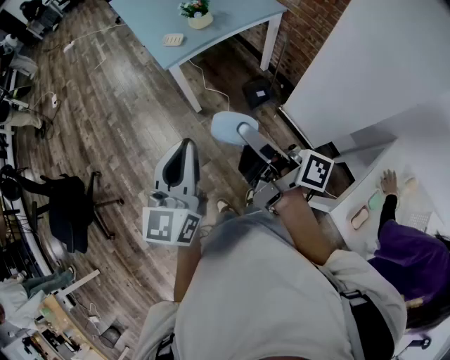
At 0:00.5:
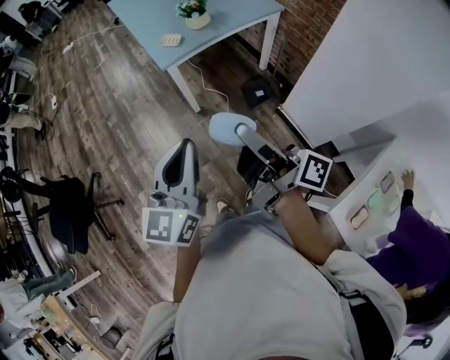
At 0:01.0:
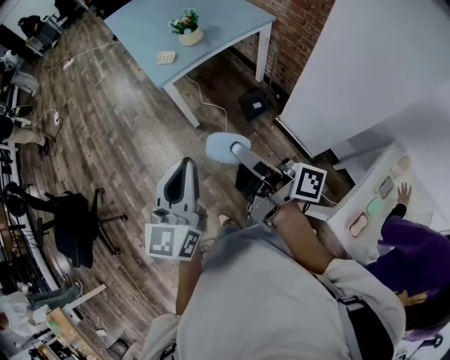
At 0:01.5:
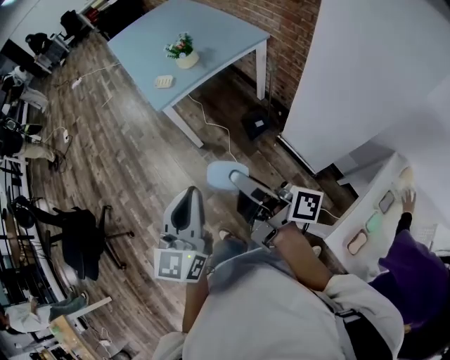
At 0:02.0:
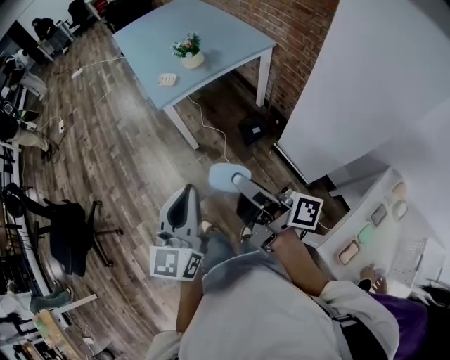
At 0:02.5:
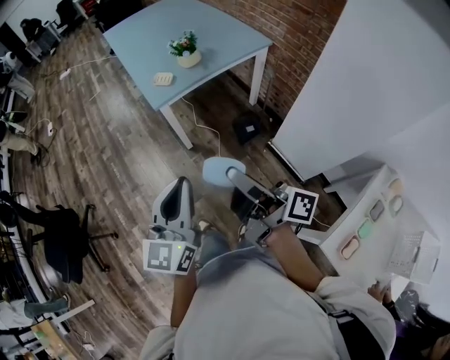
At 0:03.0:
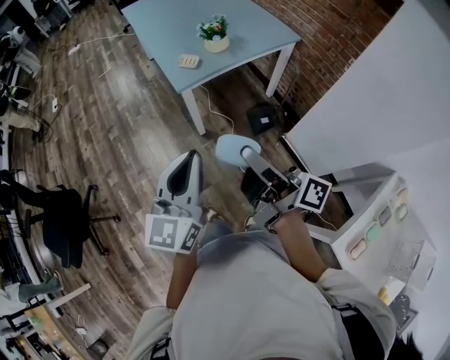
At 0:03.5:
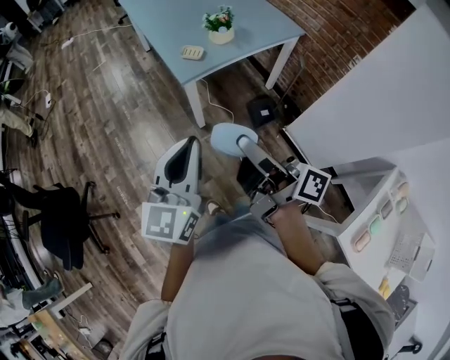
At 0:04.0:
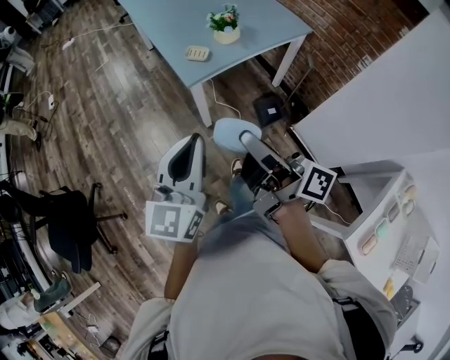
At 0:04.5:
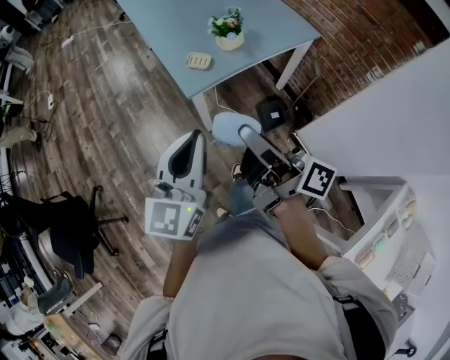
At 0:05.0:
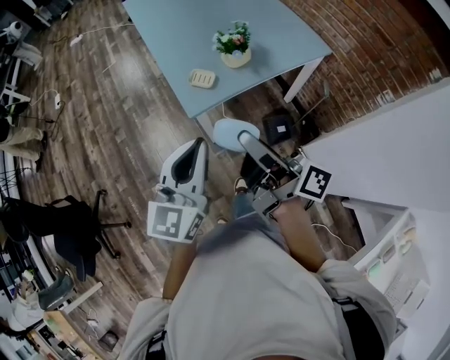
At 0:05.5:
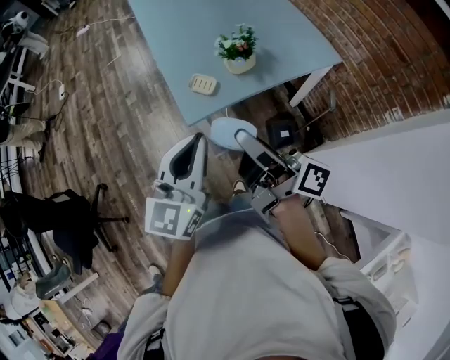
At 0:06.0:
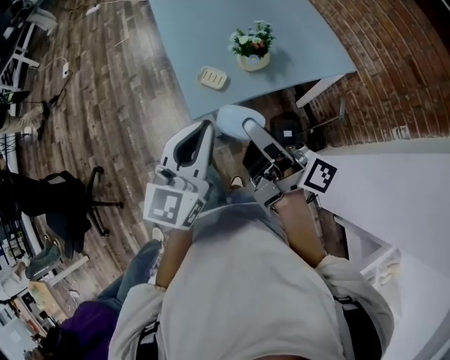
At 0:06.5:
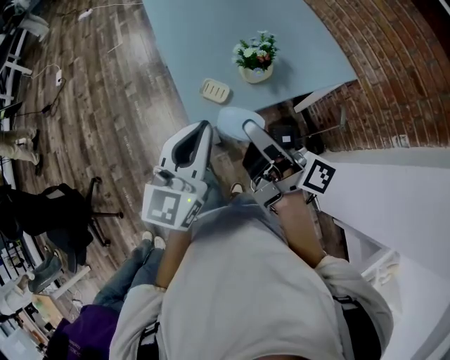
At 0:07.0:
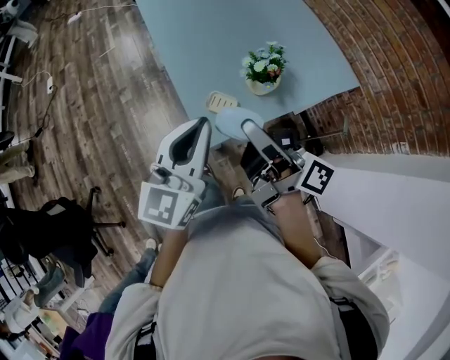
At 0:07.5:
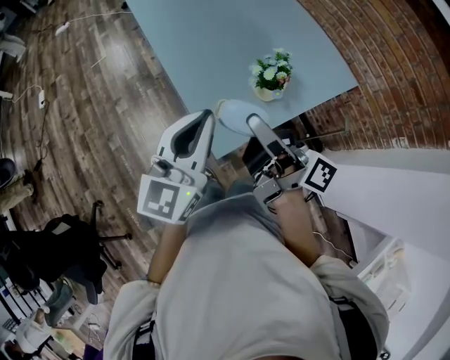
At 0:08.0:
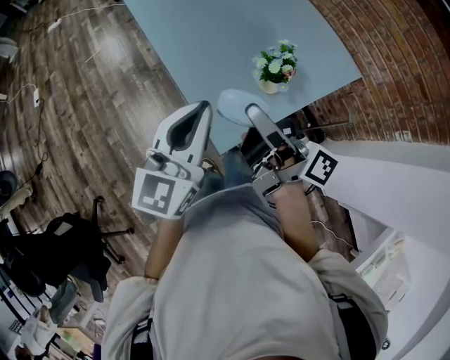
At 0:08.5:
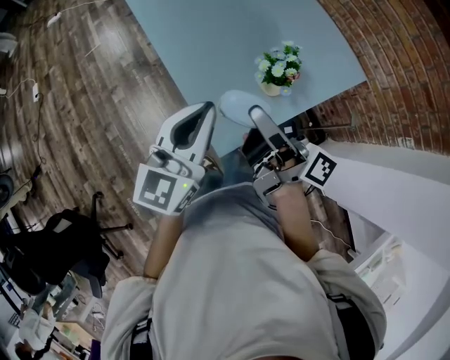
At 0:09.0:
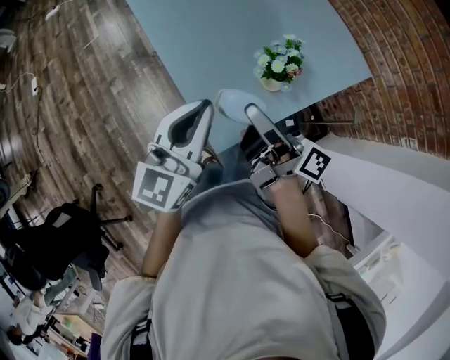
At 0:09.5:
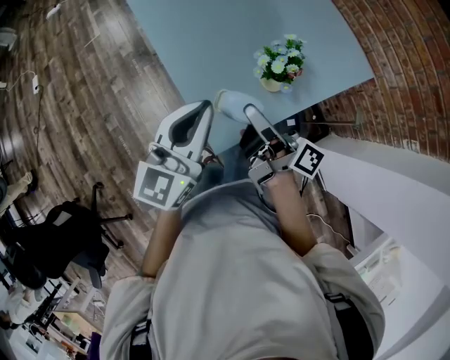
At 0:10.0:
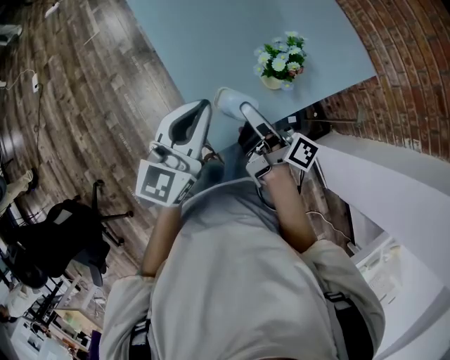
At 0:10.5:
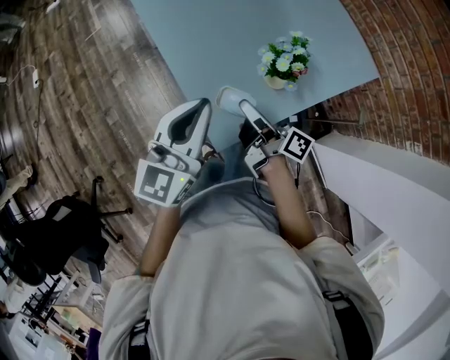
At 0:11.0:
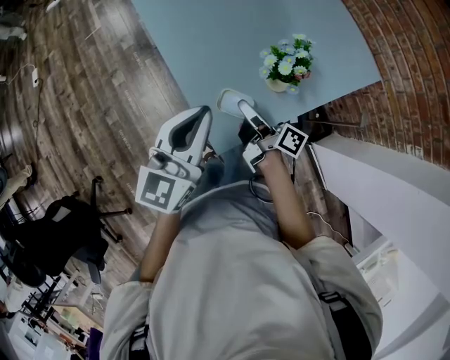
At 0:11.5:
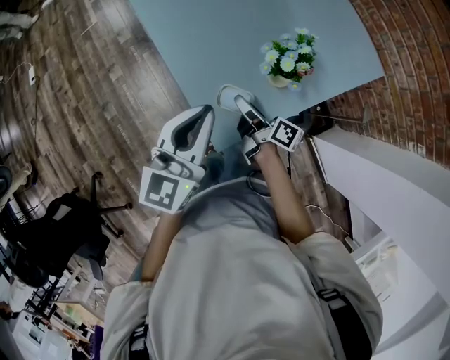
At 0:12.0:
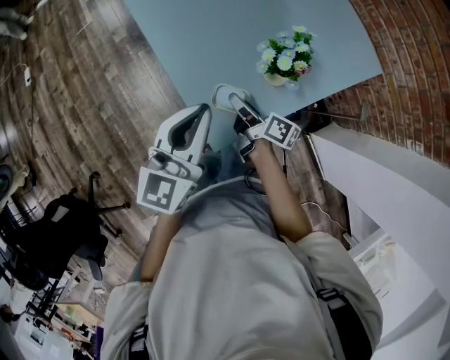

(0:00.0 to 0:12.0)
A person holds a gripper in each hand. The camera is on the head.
0:00.0 - 0:02.0: The two grippers go about 5 cm to the right.
0:02.0 - 0:04.0: The grippers both shift forward and to the left by about 20 cm.
0:04.0 - 0:06.0: Both grippers travel together forward, about 25 cm.
0:06.0 - 0:08.0: The grippers both shift forward and to the left by approximately 20 cm.
0:08.0 - 0:10.0: The left gripper travels downward by about 5 cm. Meanwhile the right gripper heads downward, covering roughly 15 cm.
0:10.0 - 0:12.0: The right gripper travels downward by some 15 cm, and changes its angle by some 20 degrees.

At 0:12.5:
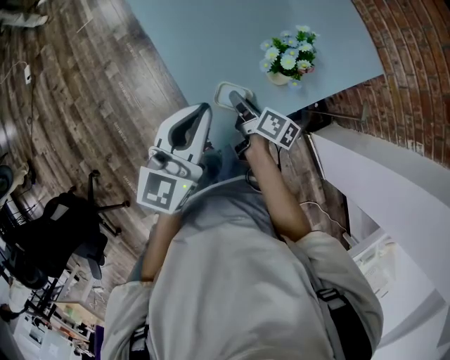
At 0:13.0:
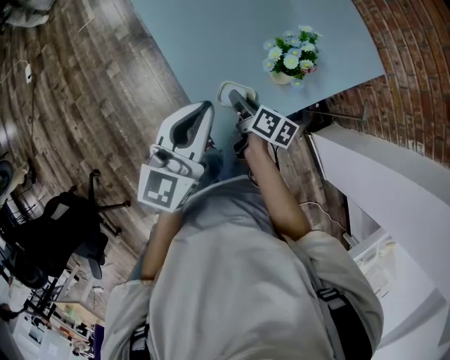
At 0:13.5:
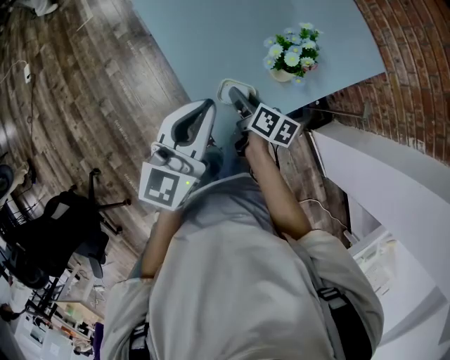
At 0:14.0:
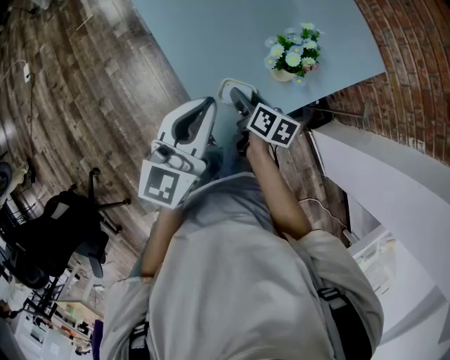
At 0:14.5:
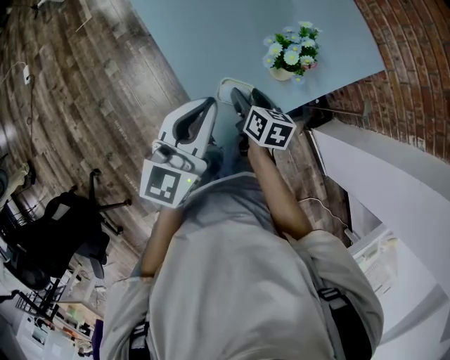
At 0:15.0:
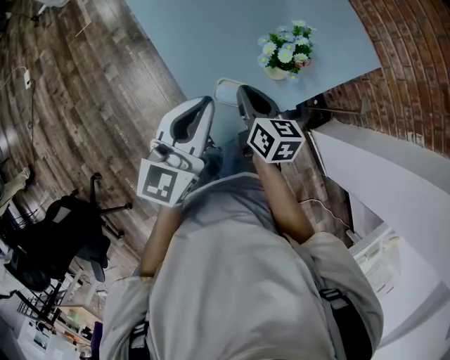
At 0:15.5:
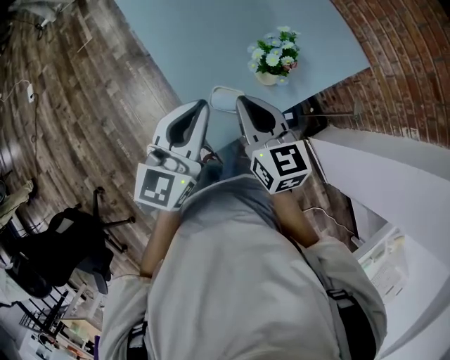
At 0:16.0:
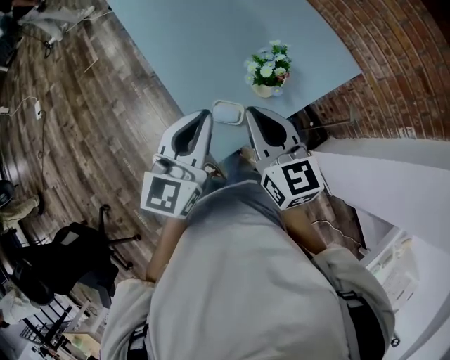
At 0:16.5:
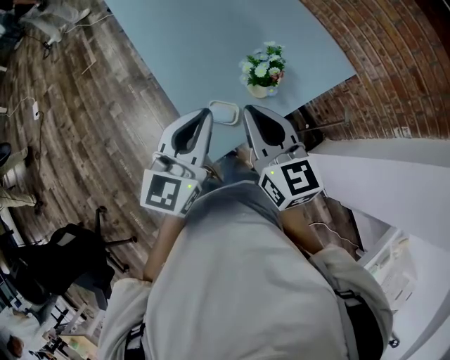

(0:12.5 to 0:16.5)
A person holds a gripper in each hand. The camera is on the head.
0:12.5 - 0:14.5: The right gripper changes its angle by about 30 degrees, and opens up.
0:14.5 - 0:16.5: The left gripper shifts roughly 5 cm upward, while the right gripper travels upward by some 25 cm, rotates roughly 40 degrees, and closes up.

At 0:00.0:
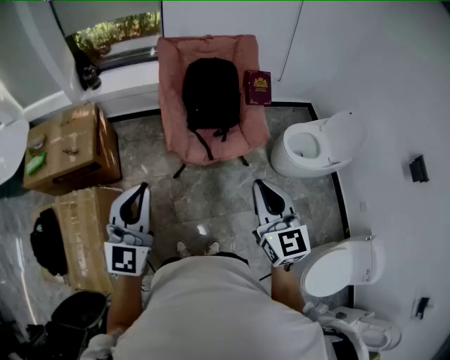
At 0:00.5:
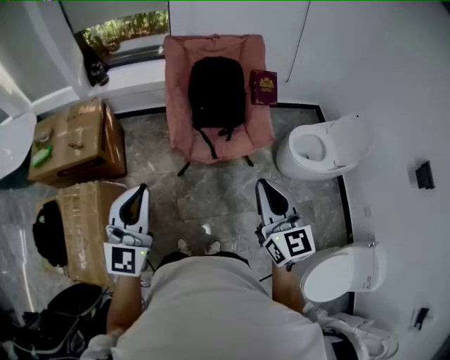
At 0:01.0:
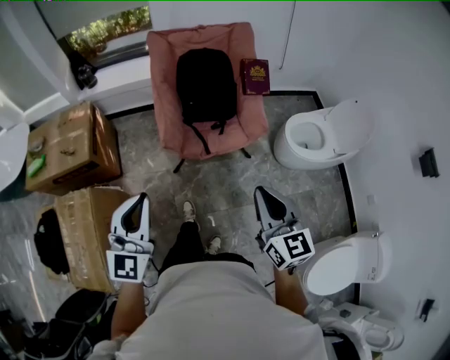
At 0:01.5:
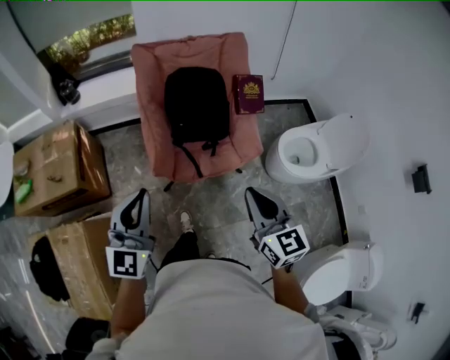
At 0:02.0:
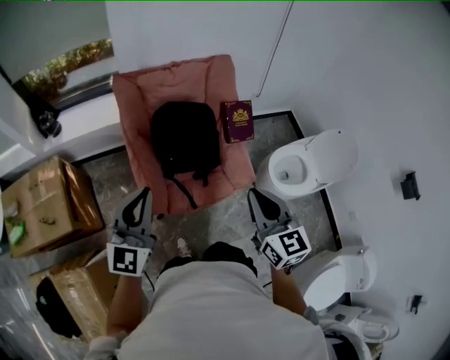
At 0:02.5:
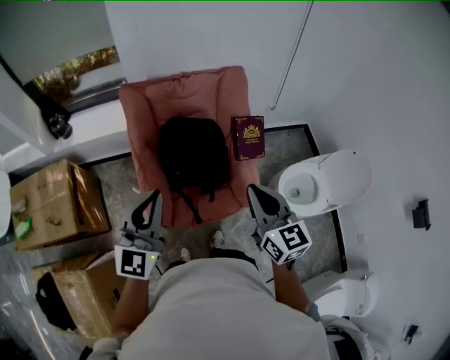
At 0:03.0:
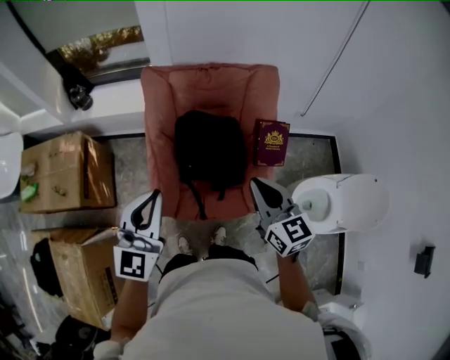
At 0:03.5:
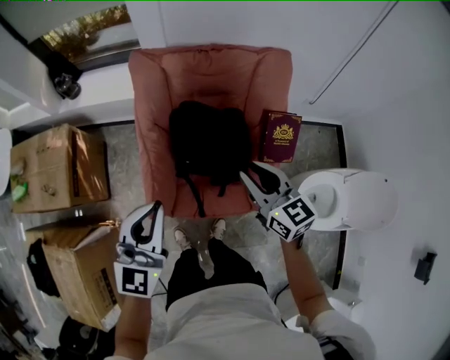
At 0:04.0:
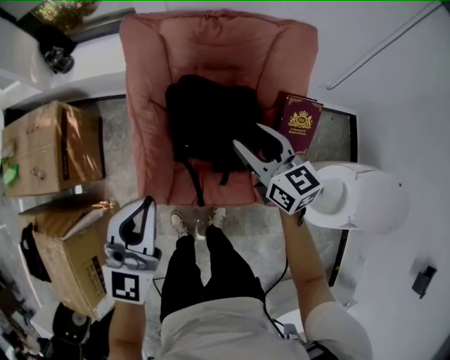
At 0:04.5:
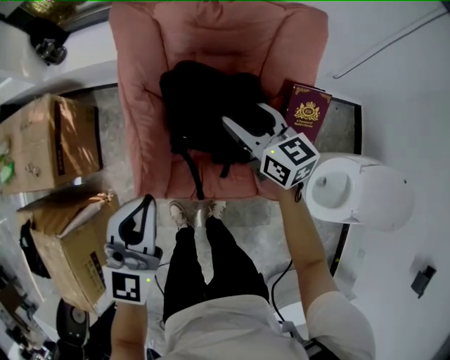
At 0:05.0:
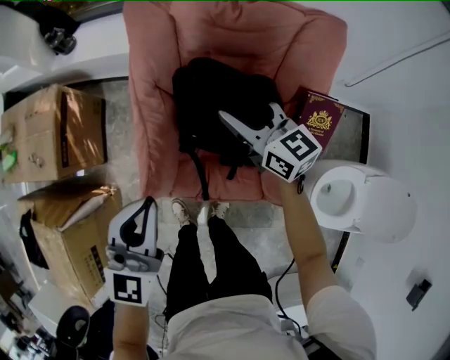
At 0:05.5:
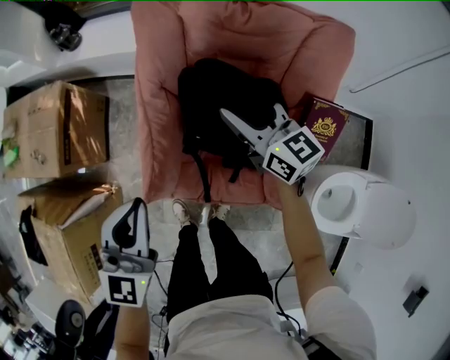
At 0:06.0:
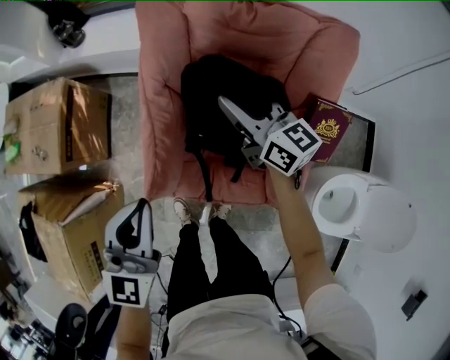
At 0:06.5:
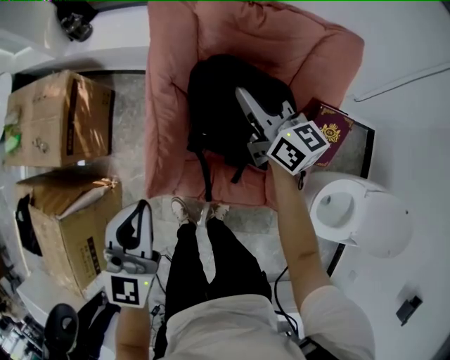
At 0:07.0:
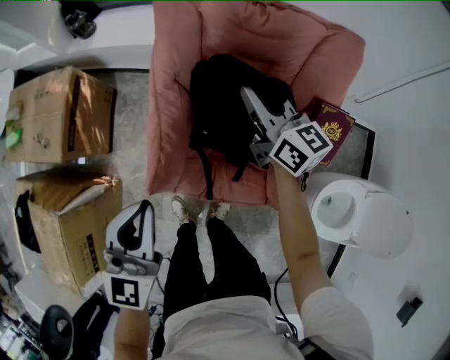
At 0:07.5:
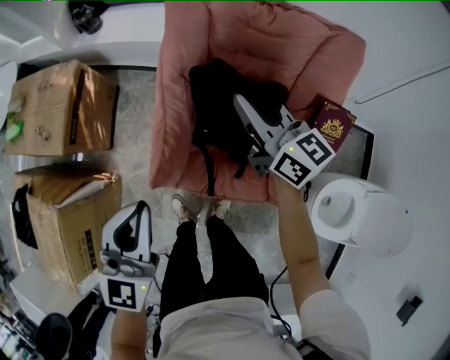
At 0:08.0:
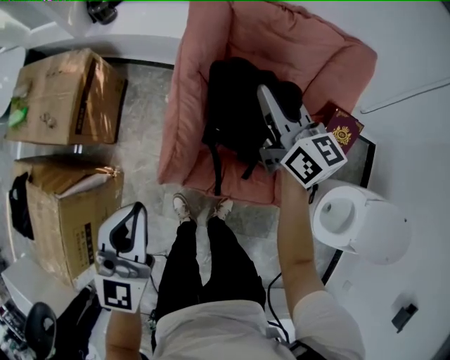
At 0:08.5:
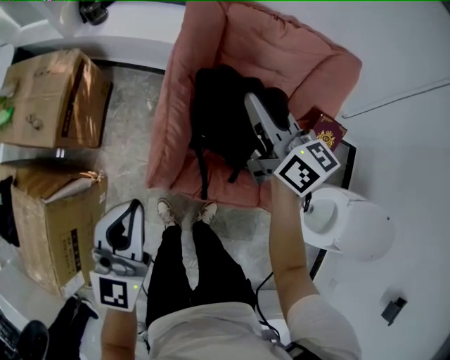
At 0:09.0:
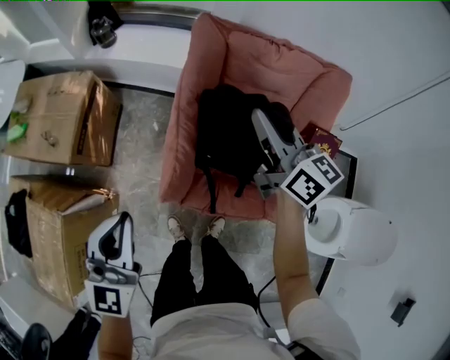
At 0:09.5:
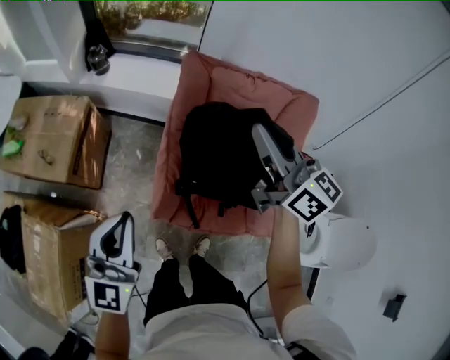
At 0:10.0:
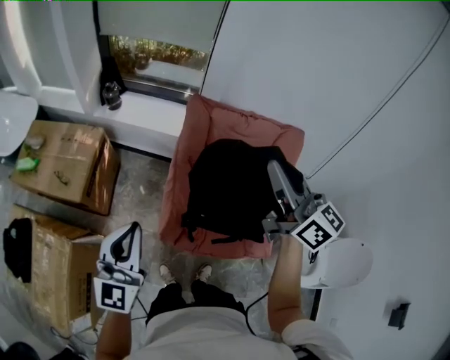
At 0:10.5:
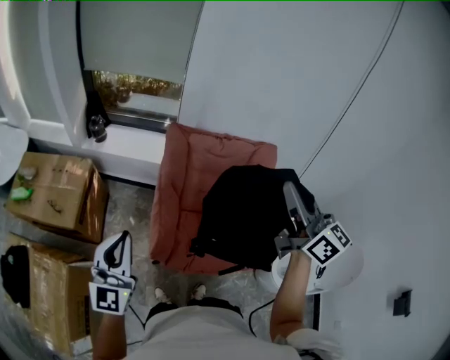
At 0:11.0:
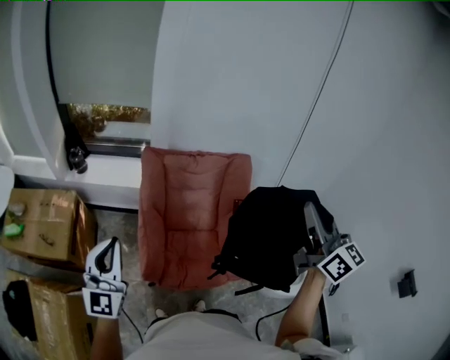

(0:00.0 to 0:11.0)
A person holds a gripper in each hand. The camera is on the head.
0:00.0 - 0:02.0: Both grippers travel together forward, about 30 cm.
0:02.0 - 0:03.5: The left gripper travels forward, downward and to the right by approximately 15 cm. The right gripper goes approximately 30 cm forward and downward, and rotates approximately 30 degrees.
0:03.5 - 0:05.5: The right gripper moves forward and downward, about 20 cm, and opens. The left gripper moves downward, roughly 10 cm.
0:05.5 - 0:07.5: The left gripper travels backward by roughly 5 cm, while the right gripper goes some 5 cm to the left, and closes.
0:07.5 - 0:09.0: The left gripper goes about 10 cm to the left, while the right gripper is displaced upward by some 10 cm.
0:09.0 - 0:11.0: The left gripper shifts approximately 15 cm upward, and turns by some 20 degrees, while the right gripper travels upward, backward and to the right by roughly 50 cm, and swivels roughly 40 degrees.
